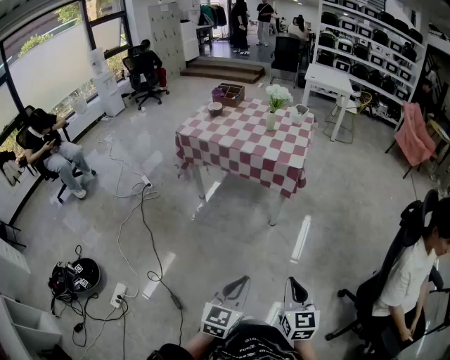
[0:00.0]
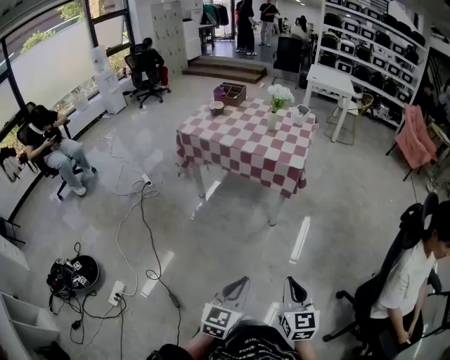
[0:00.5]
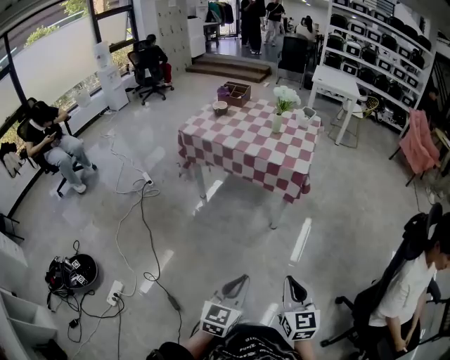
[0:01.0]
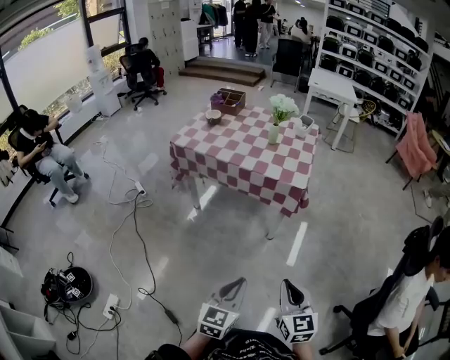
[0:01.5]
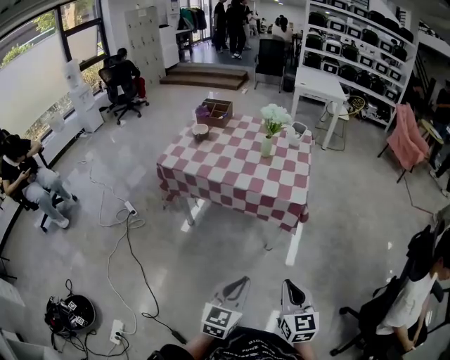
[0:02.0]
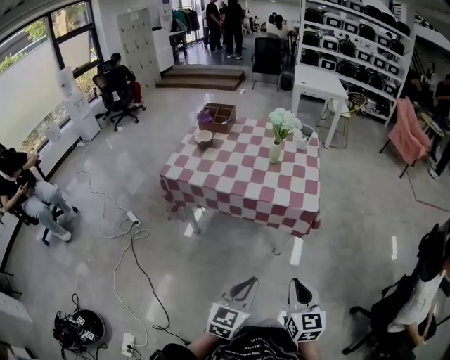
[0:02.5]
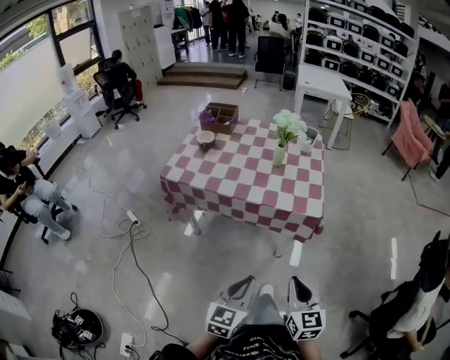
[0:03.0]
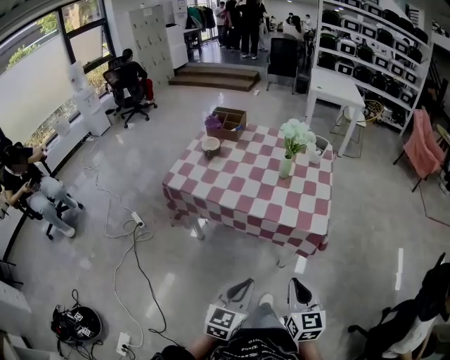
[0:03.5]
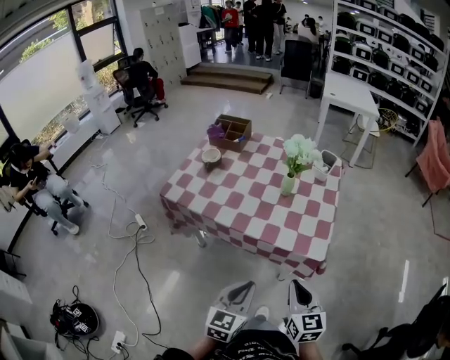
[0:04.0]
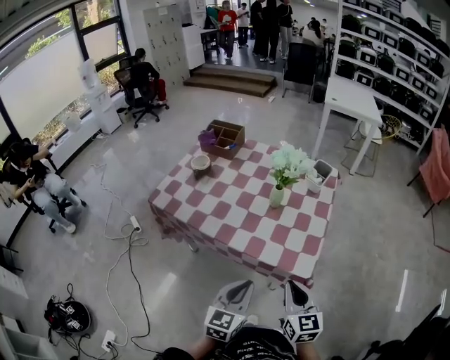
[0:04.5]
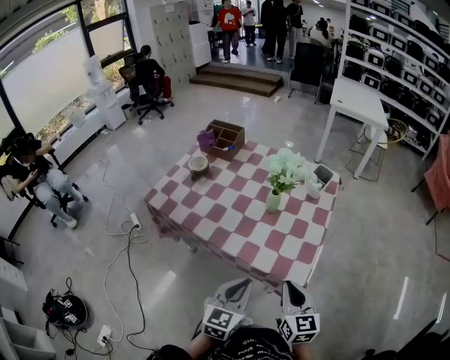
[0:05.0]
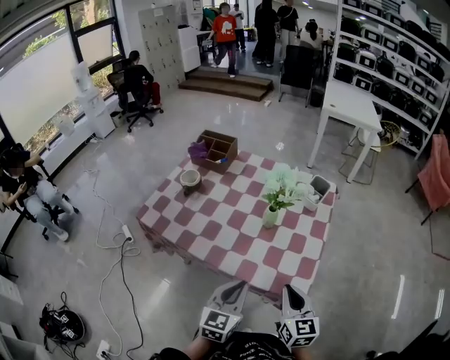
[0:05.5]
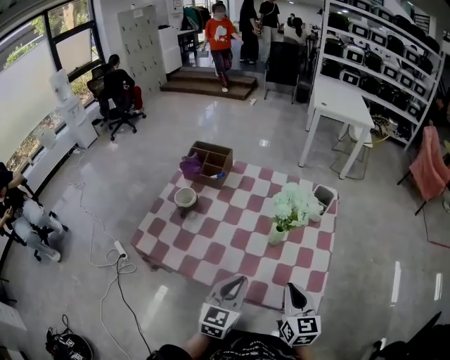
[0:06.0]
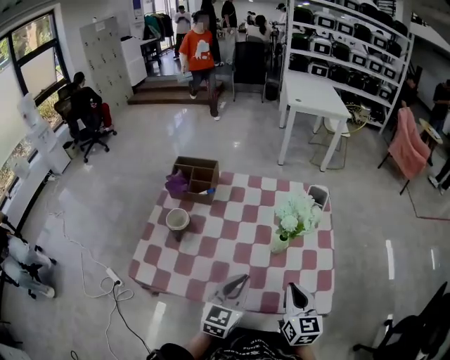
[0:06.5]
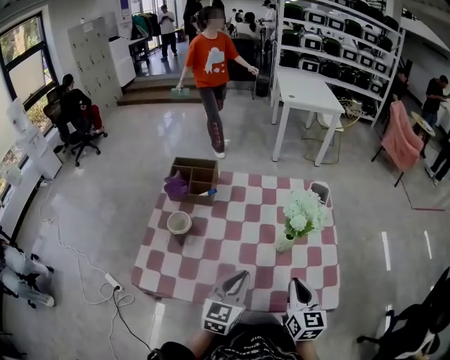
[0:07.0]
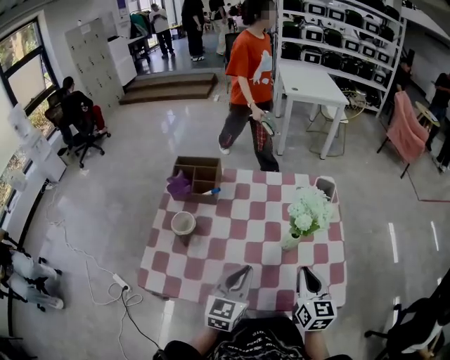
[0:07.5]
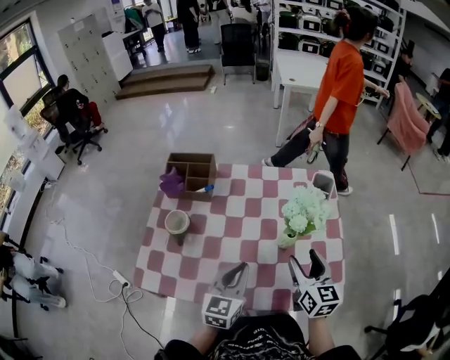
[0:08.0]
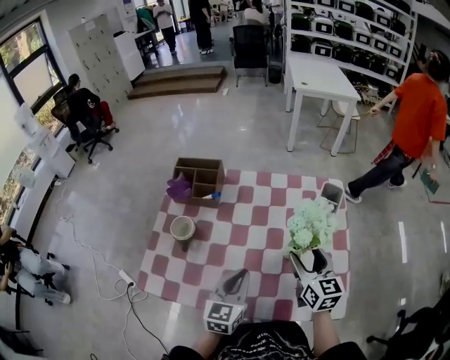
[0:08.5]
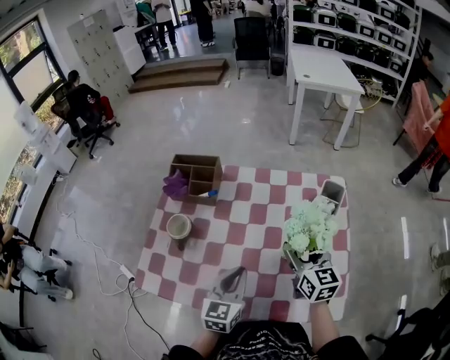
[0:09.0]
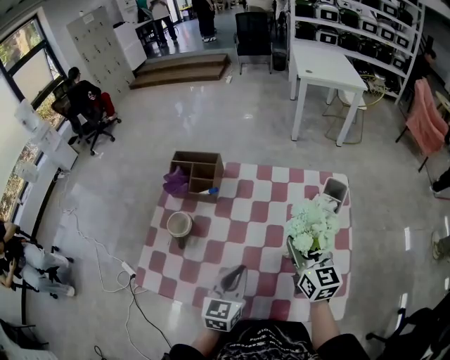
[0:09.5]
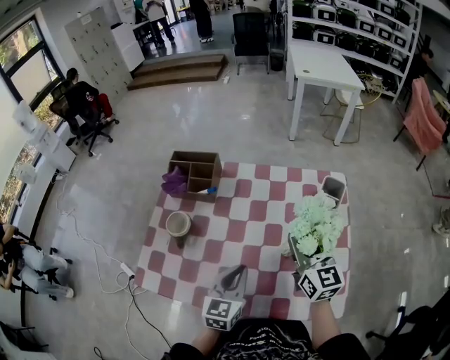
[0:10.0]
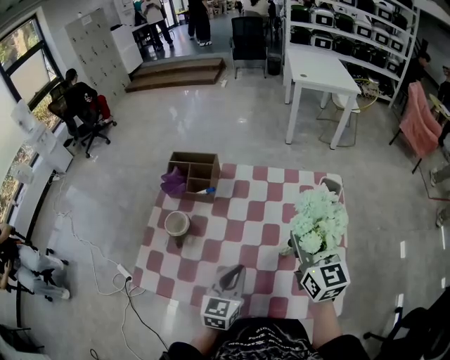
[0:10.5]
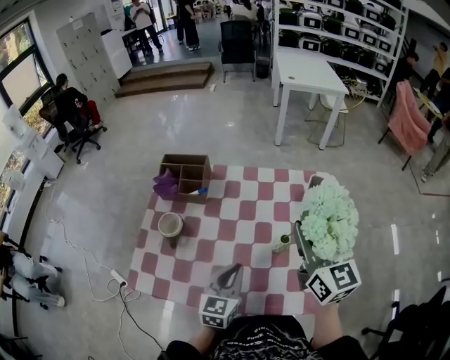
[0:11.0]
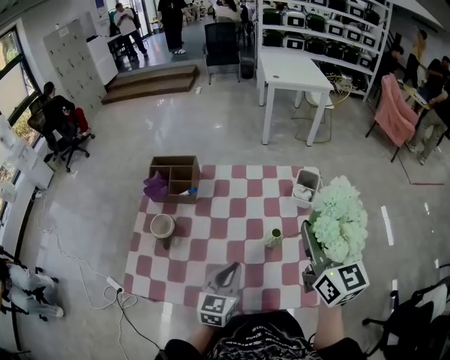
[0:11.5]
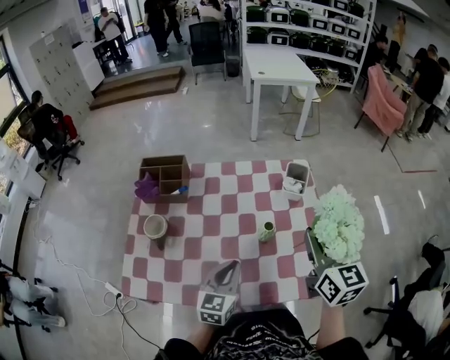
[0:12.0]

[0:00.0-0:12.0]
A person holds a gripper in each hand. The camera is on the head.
0:00.0 to 0:02.0: The grippers both shift forward by roughly 20 cm.
0:02.0 to 0:04.0: The two grippers go some 25 cm forward.
0:04.0 to 0:06.0: Both grippers move forward, about 25 cm.
0:06.0 to 0:08.0: Both grippers travel together forward and to the left, about 10 cm. The right gripper opens its fingers.
0:08.0 to 0:10.0: The right gripper shifts approximately 10 cm forward.
0:10.0 to 0:12.0: The right gripper is displaced backward, to the right and upward by roughly 15 cm.

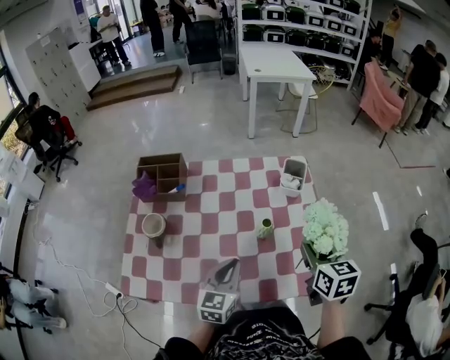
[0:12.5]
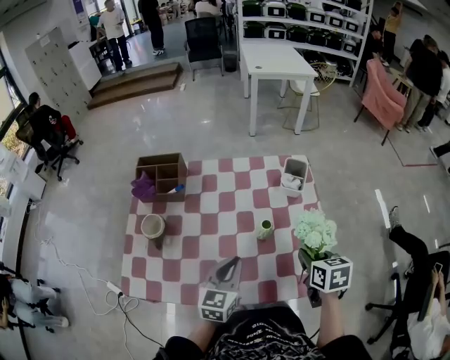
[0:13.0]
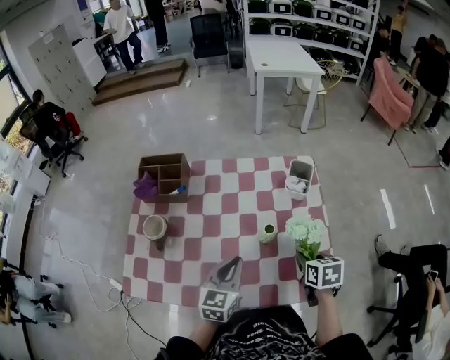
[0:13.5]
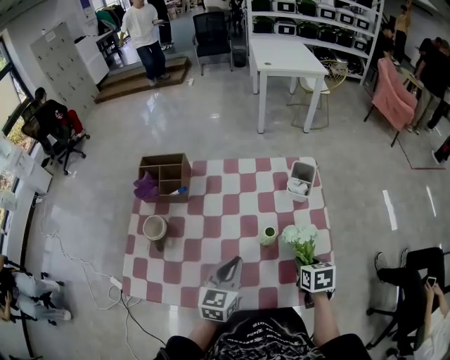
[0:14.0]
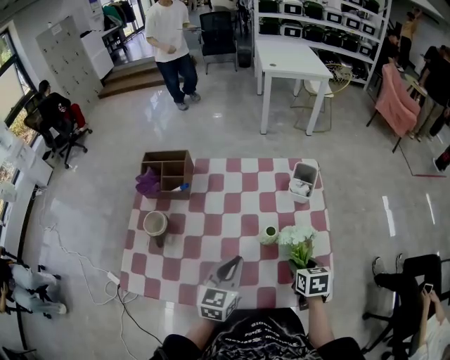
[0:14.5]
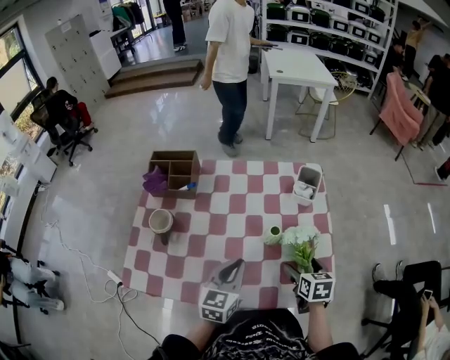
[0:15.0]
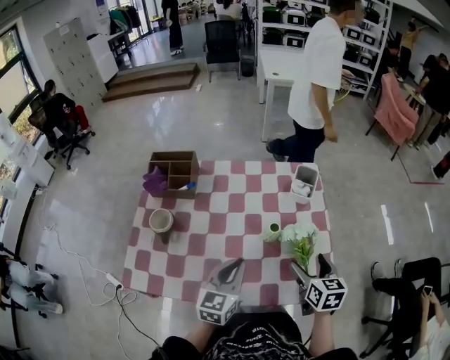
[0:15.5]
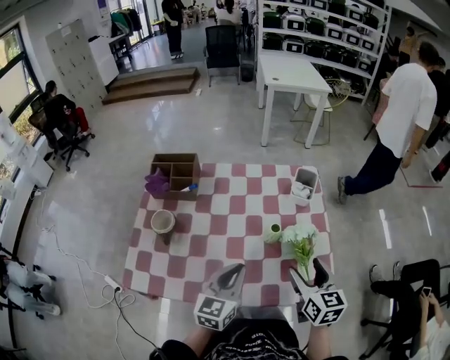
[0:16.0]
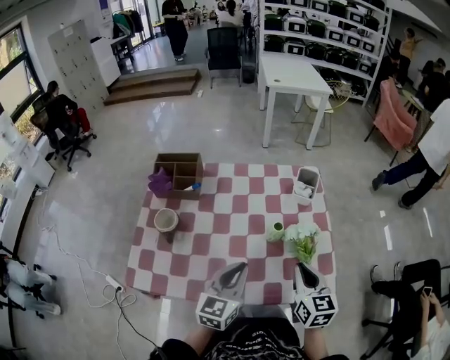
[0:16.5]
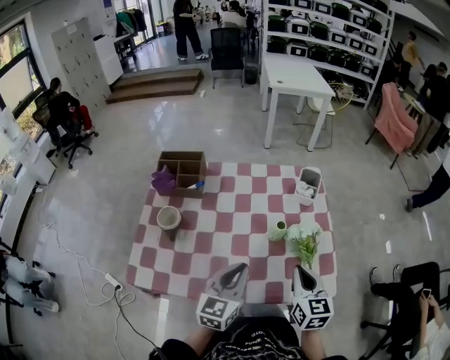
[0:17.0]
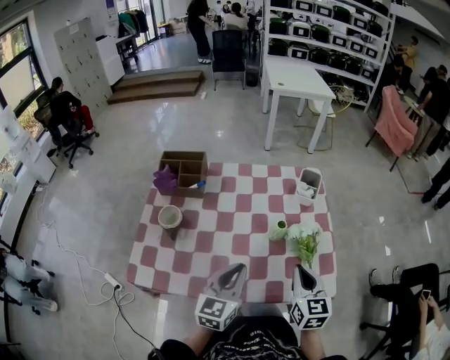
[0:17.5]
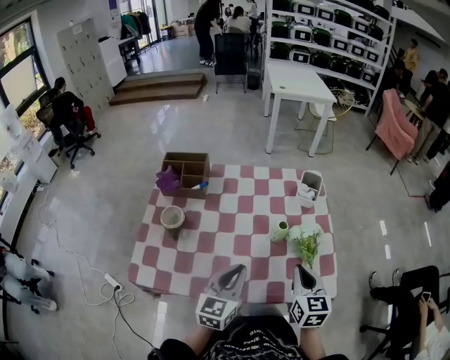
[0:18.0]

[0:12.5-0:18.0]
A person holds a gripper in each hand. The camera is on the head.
0:12.5 to 0:14.5: The right gripper heads downward, covering some 15 cm, and swivels approximately 20 degrees.
0:14.5 to 0:16.0: The right gripper is displaced upward by approximately 15 cm, swivels about 30 degrees, and opens its fingers. Meanwhile the left gripper moves roughly 5 cm.
0:16.0 to 0:18.0: The right gripper closes its fingers.

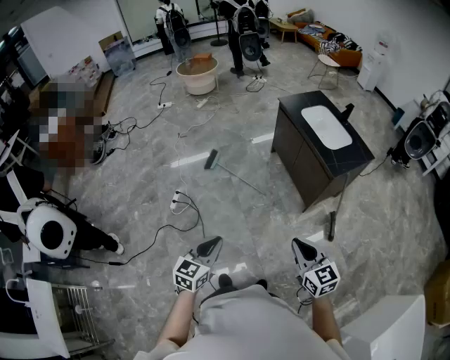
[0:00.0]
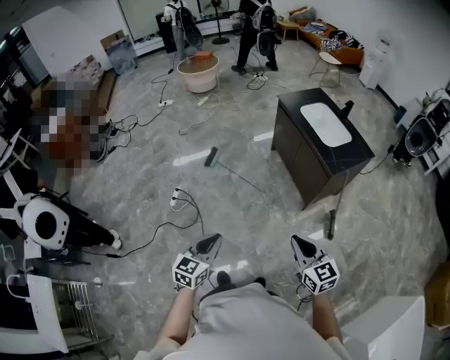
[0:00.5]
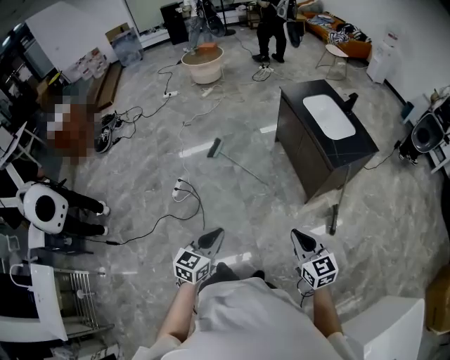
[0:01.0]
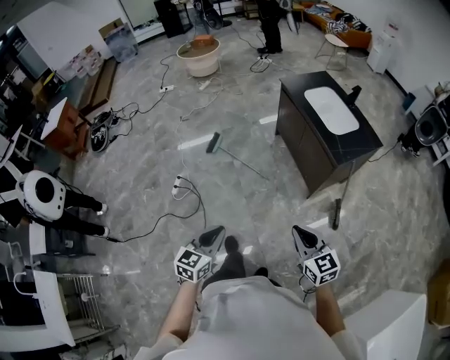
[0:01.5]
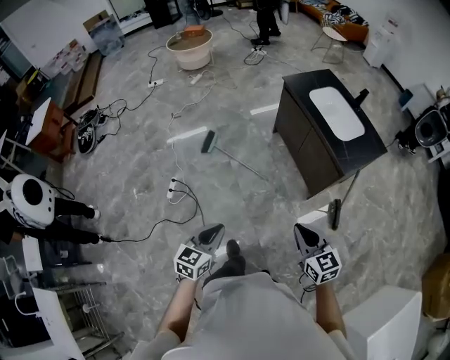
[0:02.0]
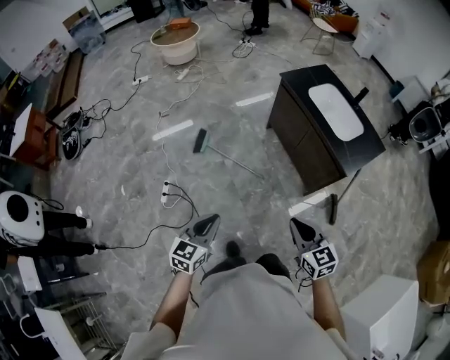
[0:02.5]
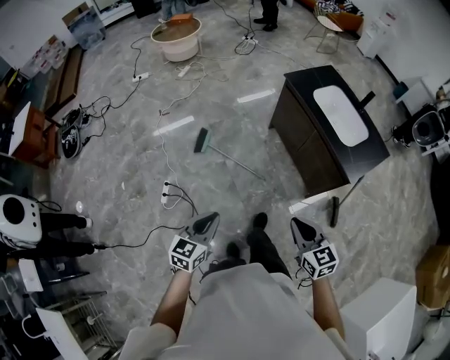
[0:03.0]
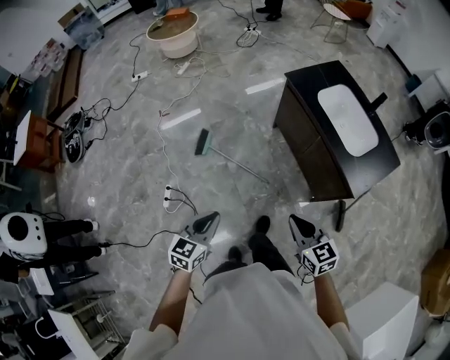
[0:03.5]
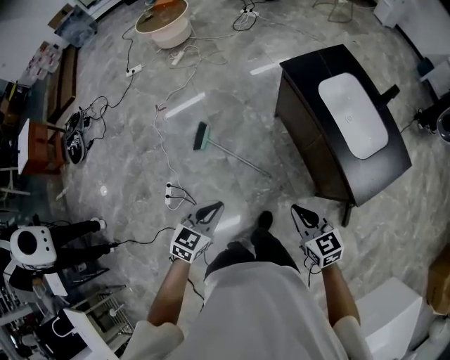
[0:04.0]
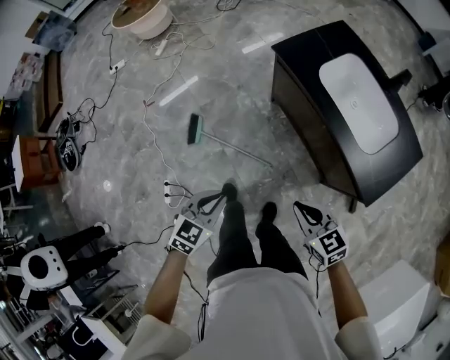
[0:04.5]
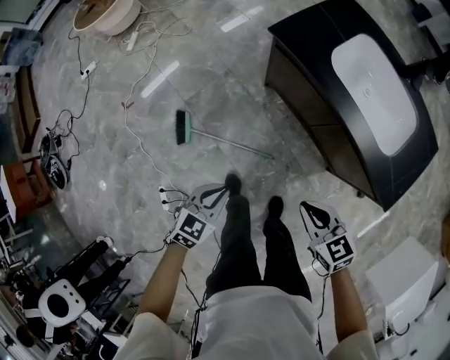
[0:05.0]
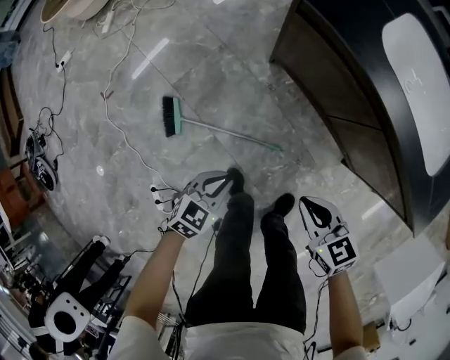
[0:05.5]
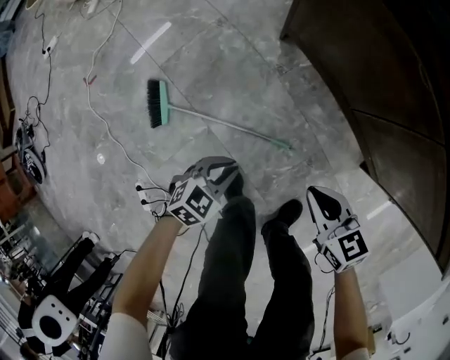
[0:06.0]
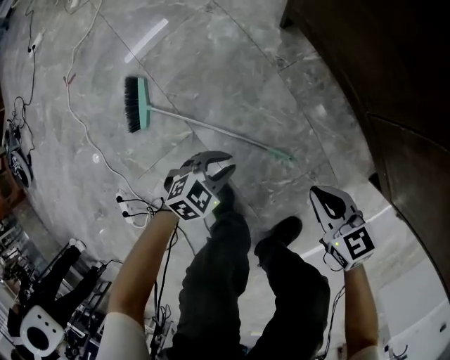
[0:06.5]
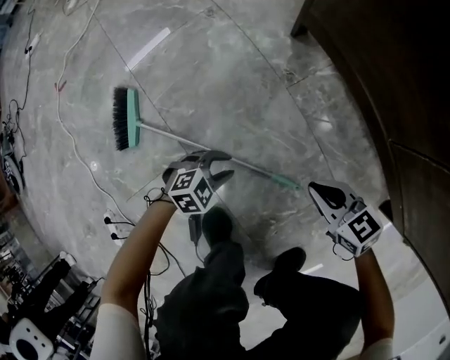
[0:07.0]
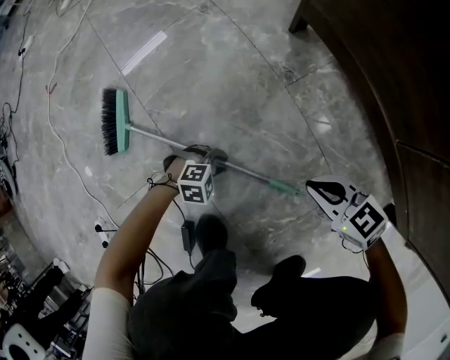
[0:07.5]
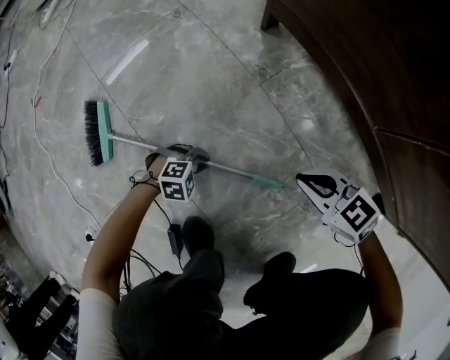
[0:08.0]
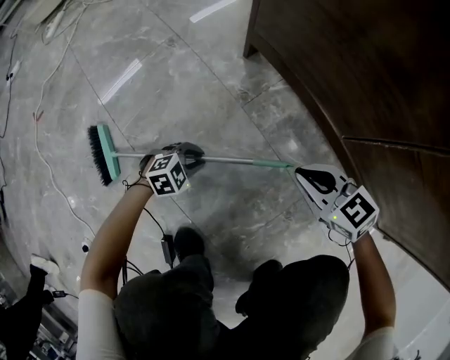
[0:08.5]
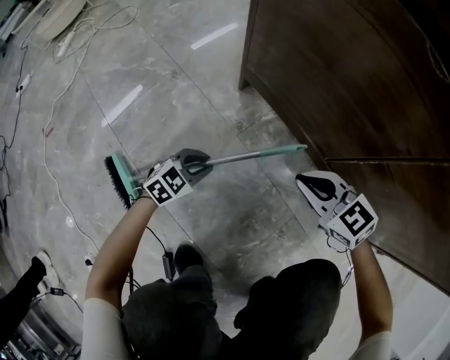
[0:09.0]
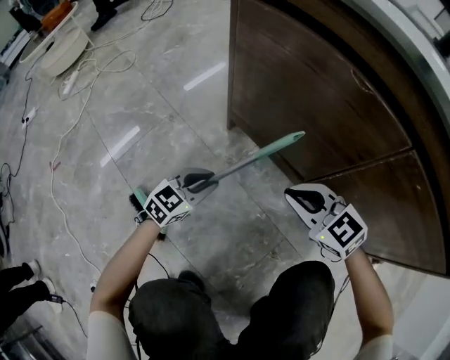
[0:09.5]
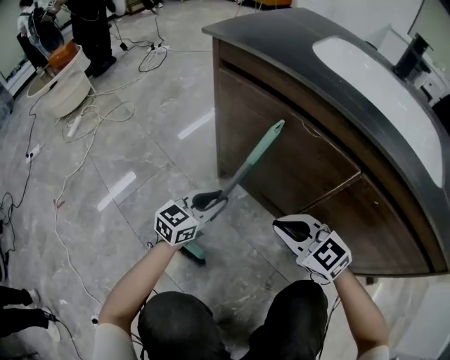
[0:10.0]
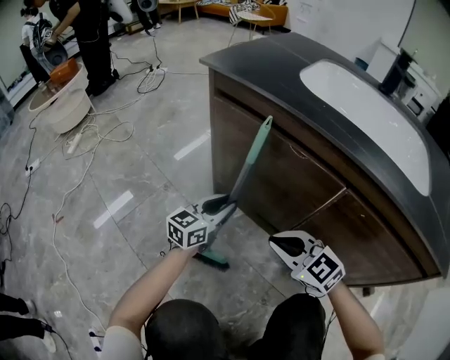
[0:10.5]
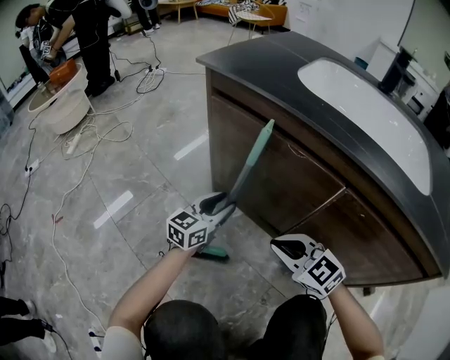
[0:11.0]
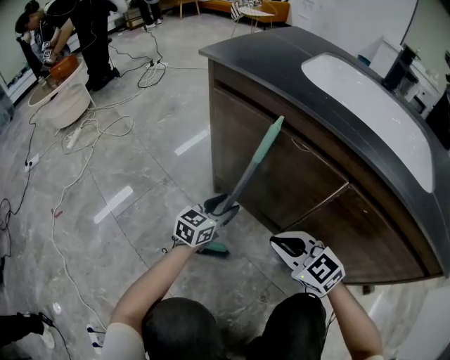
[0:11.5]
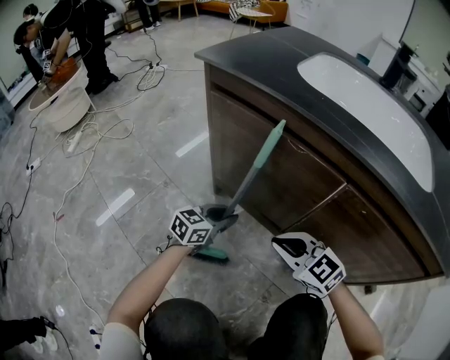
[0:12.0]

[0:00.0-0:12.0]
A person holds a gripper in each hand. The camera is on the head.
0:00.0 to 0:02.0: The grippers both shift forward by some 15 cm.
0:02.0 to 0:04.0: Both grippers travel together forward, some 40 cm.
0:04.0 to 0:06.0: Both grippers move downward, roughly 60 cm. The left gripper swivels roughly 40 degrees. The right gripper rotates about 20 degrees.
0:06.0 to 0:08.0: The two grippers go about 40 cm downward. The right gripper swivels some 20 degrees. Meanwhile the left gripper turns by about 40 degrees.
0:08.0 to 0:10.0: Both grippers travel together upward, roughly 35 cm. The left gripper points its fingers roughly 50 degrees further upward. The right gripper turns by about 30 degrees.
0:10.0 to 0:12.0: The left gripper moves to the right, roughly 5 cm, and opens and closes again.
